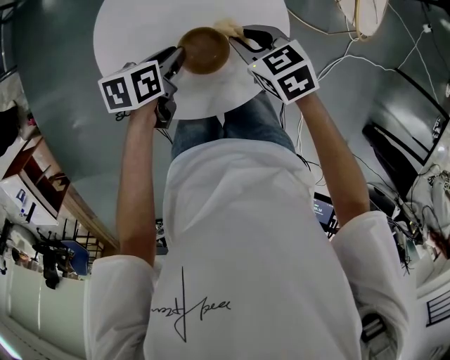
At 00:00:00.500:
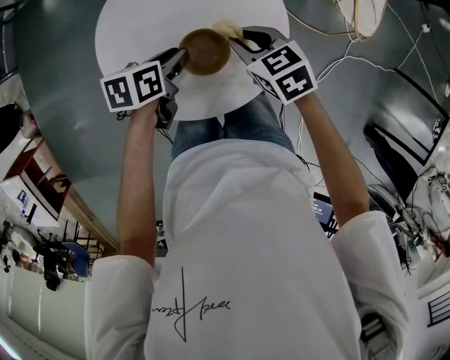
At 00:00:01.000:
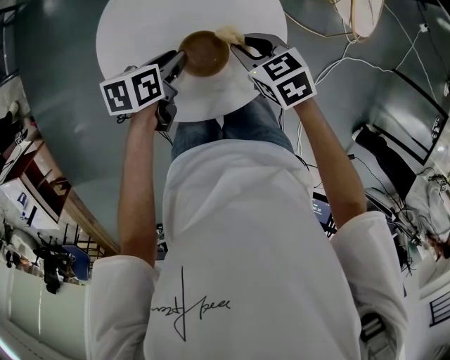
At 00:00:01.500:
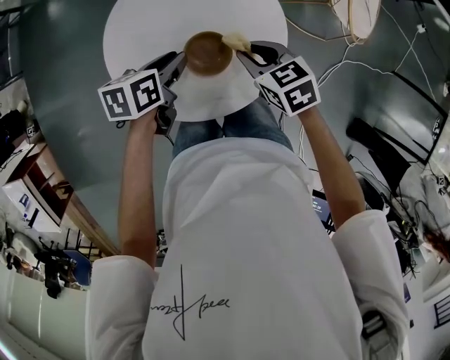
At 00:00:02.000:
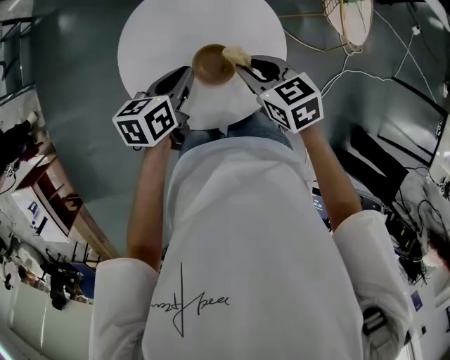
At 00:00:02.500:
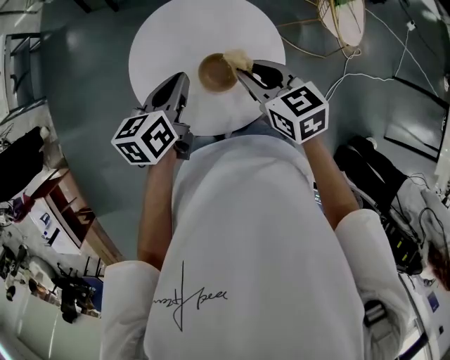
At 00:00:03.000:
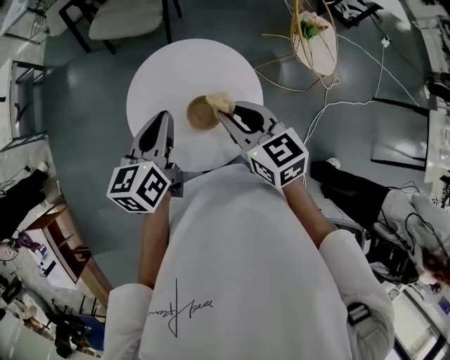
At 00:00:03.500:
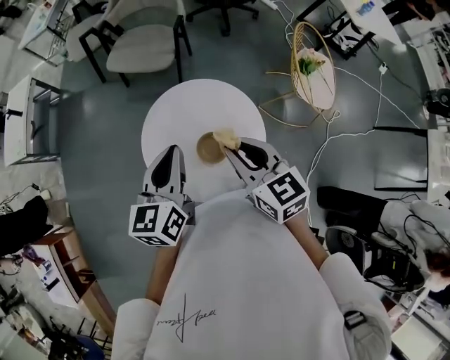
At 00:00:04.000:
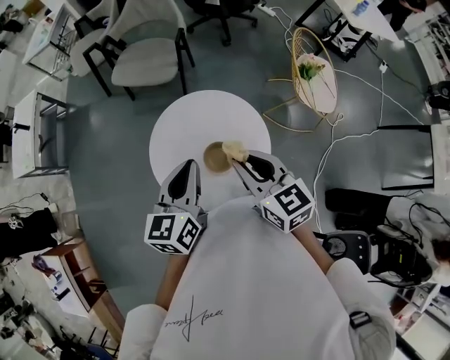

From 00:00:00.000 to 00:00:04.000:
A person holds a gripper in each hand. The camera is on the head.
From 00:00:00.000 to 00:00:02.000: Both grippers travel together upward, about 10 cm.
From 00:00:02.000 to 00:00:04.000: Both grippers move upward, approximately 20 cm. The right gripper turns by about 30 degrees. The left gripper changes its angle by some 30 degrees.

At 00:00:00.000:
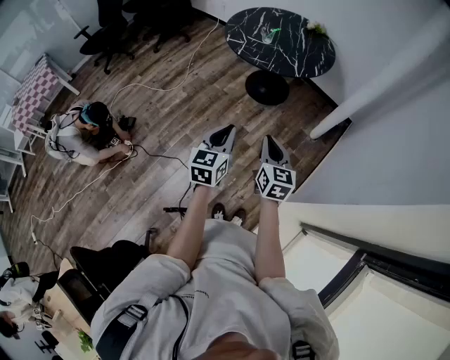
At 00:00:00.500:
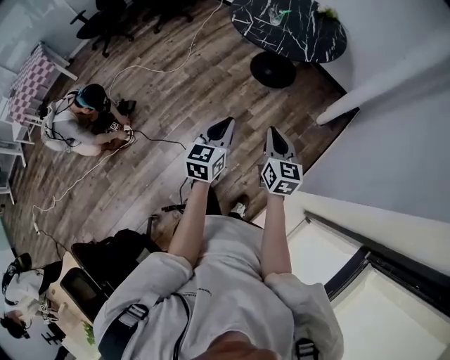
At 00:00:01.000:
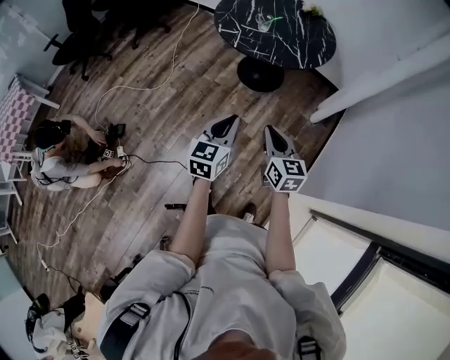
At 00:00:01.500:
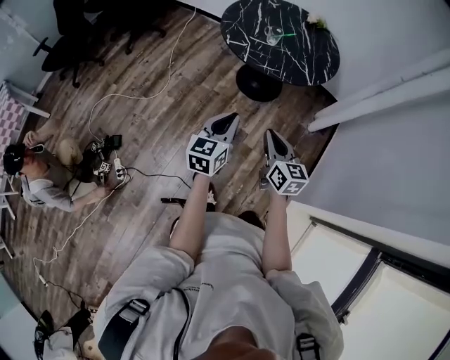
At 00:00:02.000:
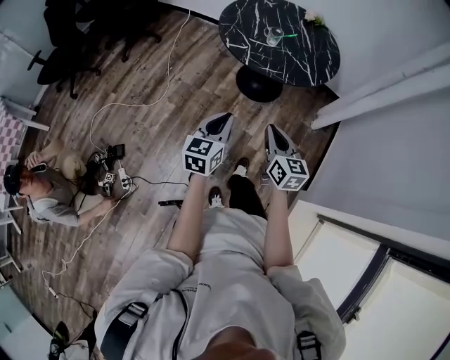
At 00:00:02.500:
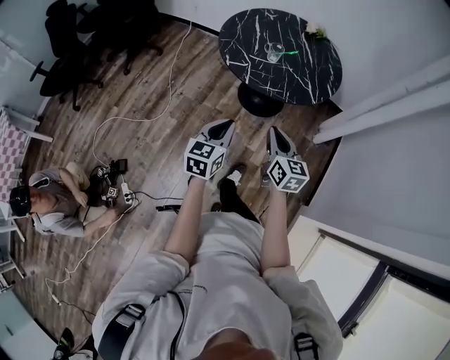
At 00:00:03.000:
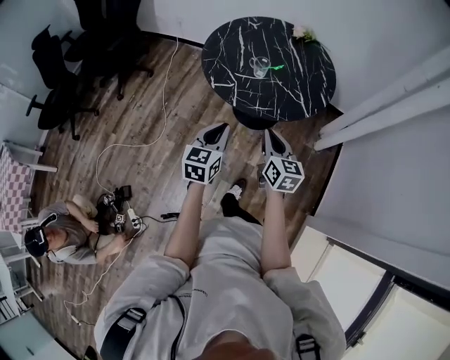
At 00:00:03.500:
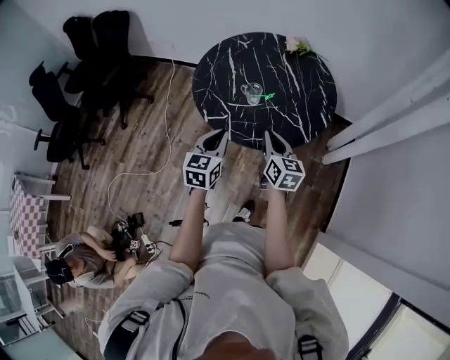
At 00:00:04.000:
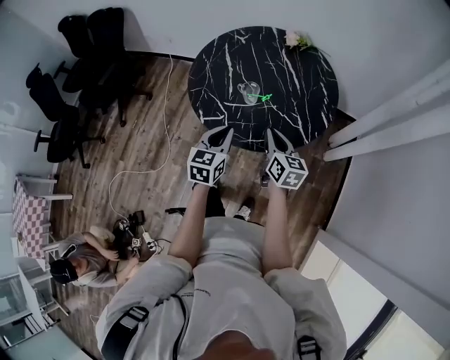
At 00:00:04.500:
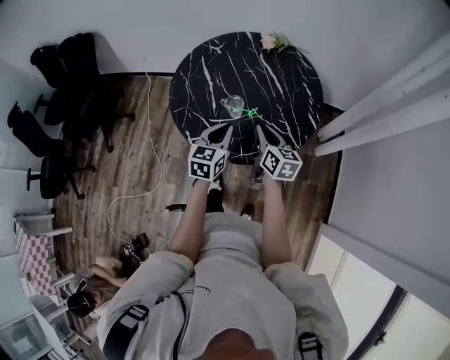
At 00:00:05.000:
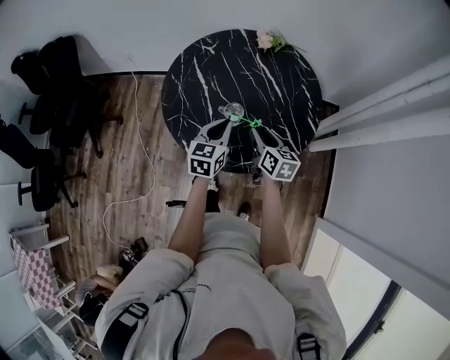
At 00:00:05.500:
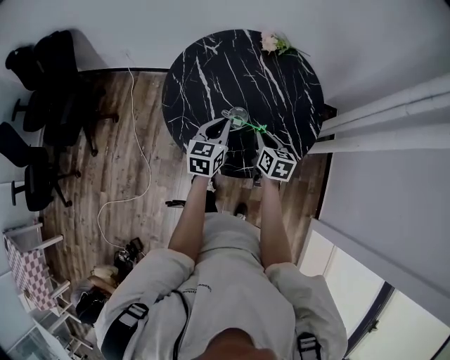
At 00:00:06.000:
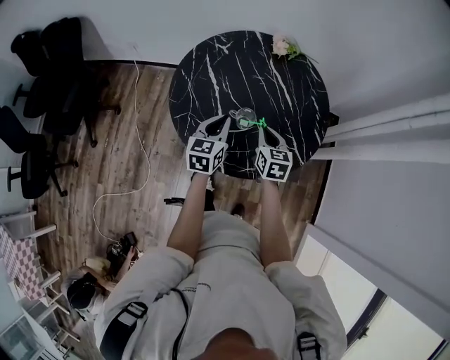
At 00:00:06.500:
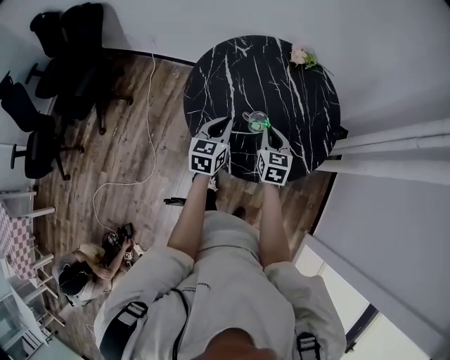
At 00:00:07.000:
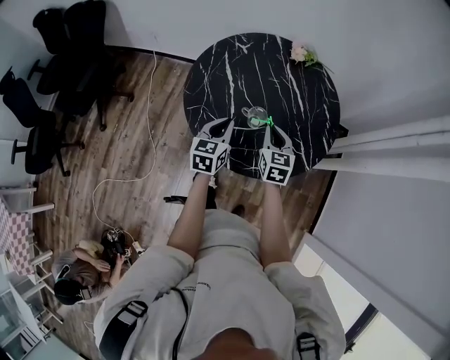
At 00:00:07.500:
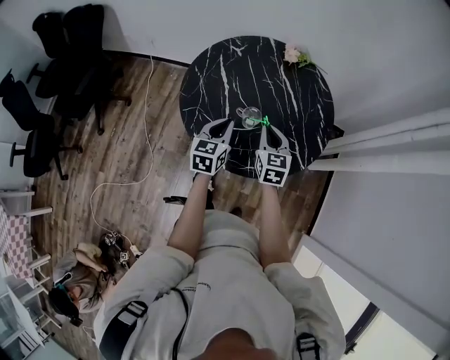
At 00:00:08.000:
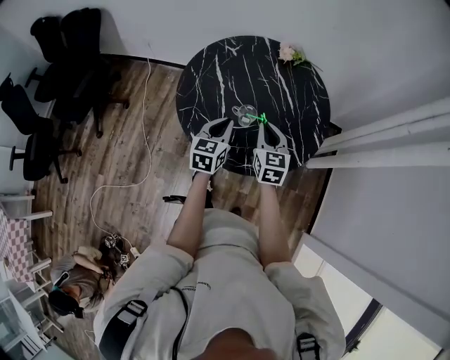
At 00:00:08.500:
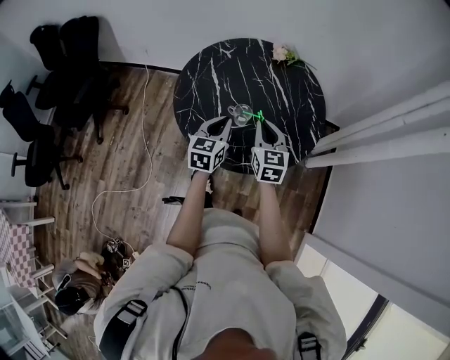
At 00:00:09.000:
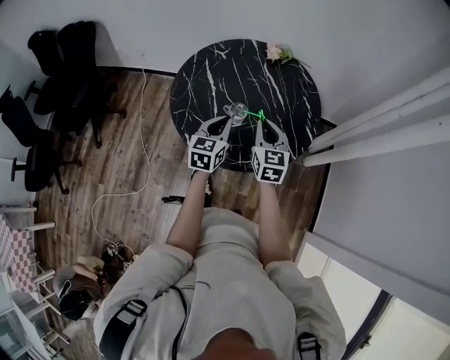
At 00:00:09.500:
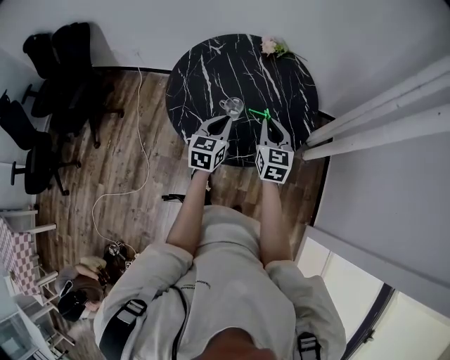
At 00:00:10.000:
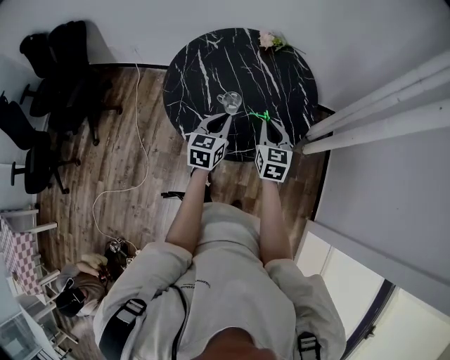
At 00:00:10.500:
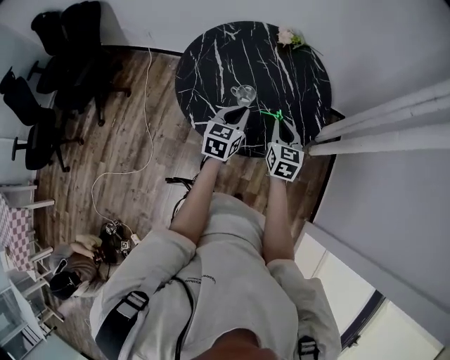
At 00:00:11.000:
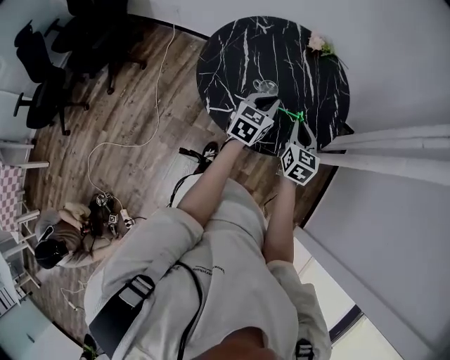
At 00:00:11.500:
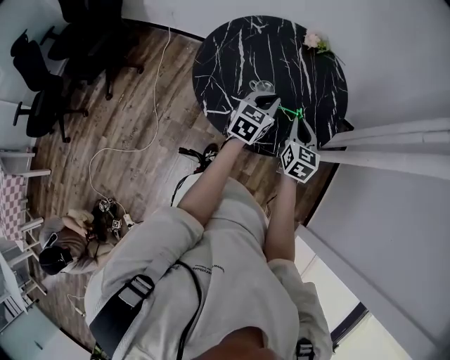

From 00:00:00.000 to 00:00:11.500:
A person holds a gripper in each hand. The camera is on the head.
From 00:00:00.000 to 00:00:02.000: The right gripper heads to the left and forward, covering approximately 35 cm. The left gripper moves forward and to the left, about 35 cm.
From 00:00:02.000 to 00:00:04.000: Both grippers are carried forward, roughly 40 cm.
From 00:00:04.000 to 00:00:06.000: Both grippers travel together forward and to the left, some 20 cm. The right gripper turns by roughly 20 degrees, and opens, then closes again.
From 00:00:06.000 to 00:00:07.500: The grippers move only a little.
From 00:00:07.500 to 00:00:09.500: The grippers both shift to the right by about 10 cm.
From 00:00:09.500 to 00:00:11.500: The left gripper shifts by about 5 cm.

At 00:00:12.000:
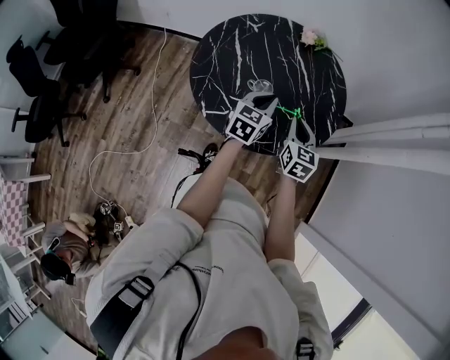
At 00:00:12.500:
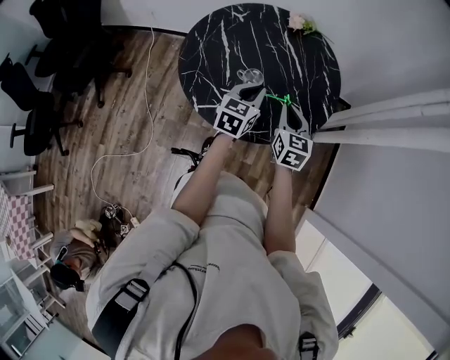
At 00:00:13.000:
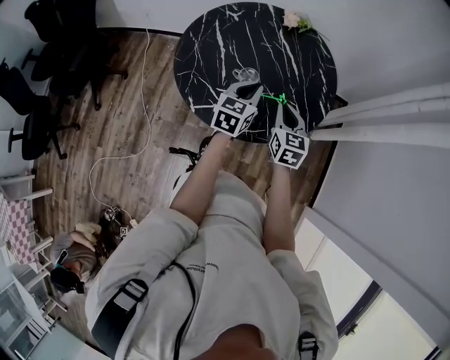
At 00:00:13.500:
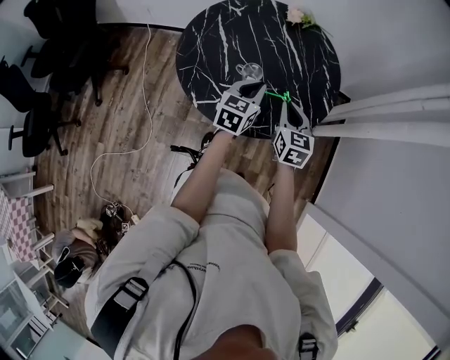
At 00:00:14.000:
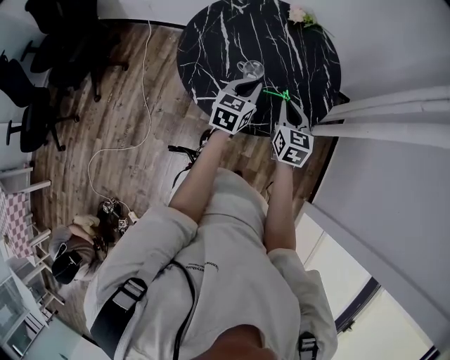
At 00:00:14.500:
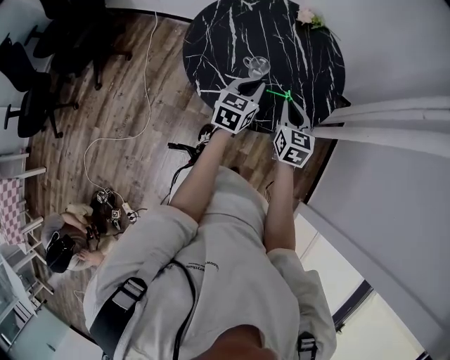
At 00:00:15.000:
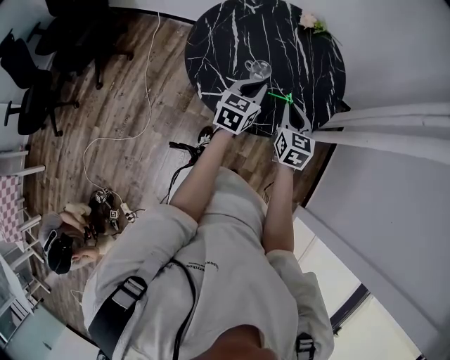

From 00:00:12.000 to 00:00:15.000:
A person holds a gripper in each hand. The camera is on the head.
From 00:00:12.000 to 00:00:15.000: There are only small adjustments of the grippers.

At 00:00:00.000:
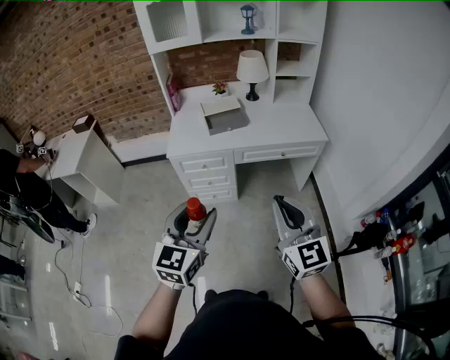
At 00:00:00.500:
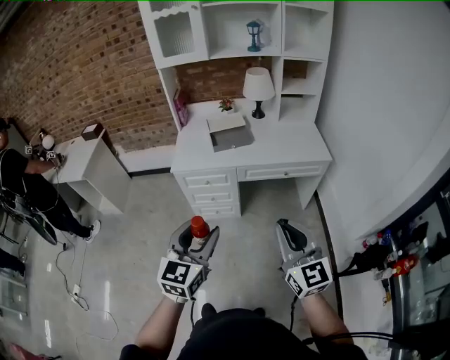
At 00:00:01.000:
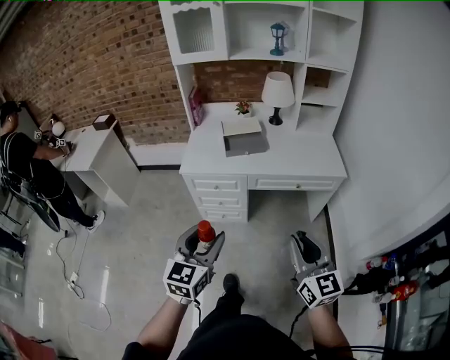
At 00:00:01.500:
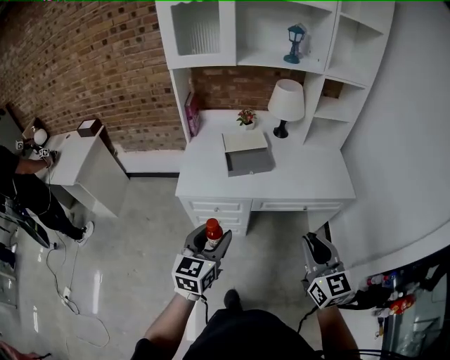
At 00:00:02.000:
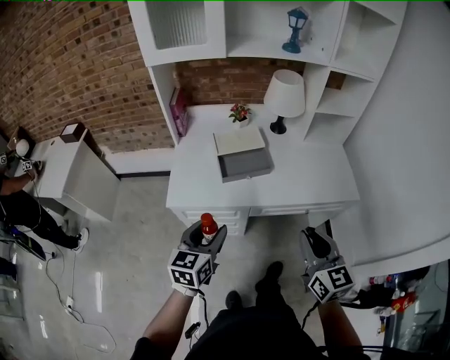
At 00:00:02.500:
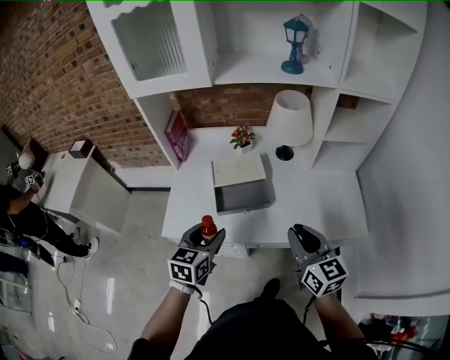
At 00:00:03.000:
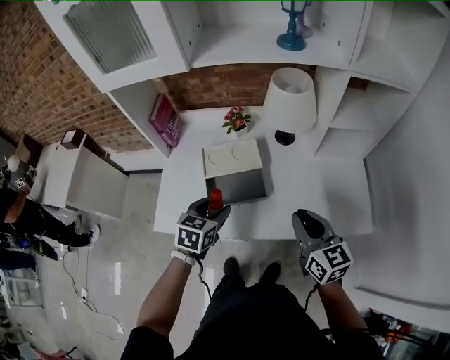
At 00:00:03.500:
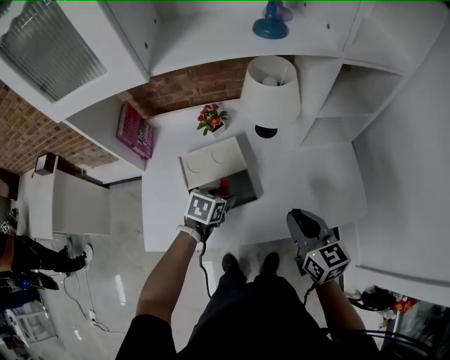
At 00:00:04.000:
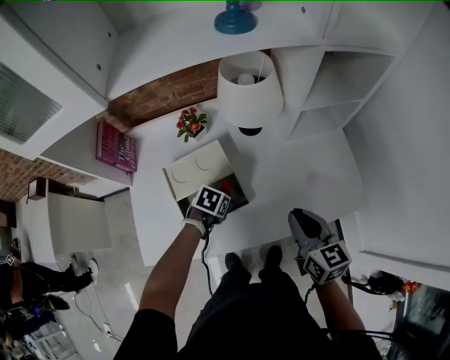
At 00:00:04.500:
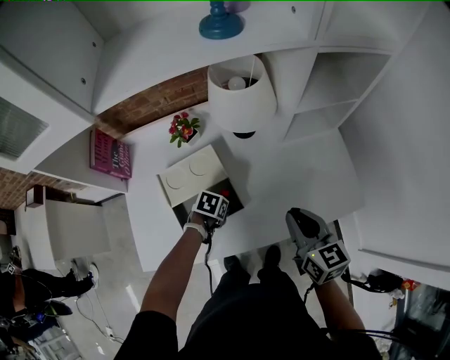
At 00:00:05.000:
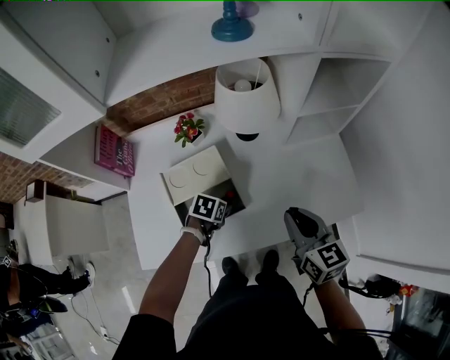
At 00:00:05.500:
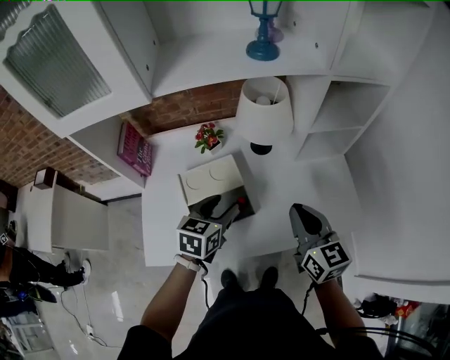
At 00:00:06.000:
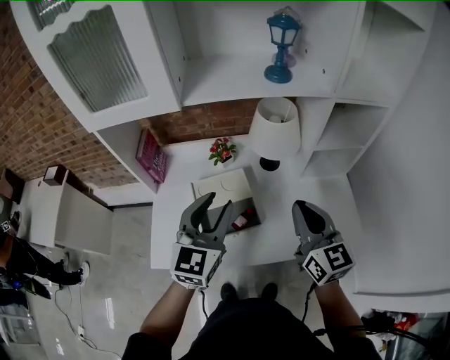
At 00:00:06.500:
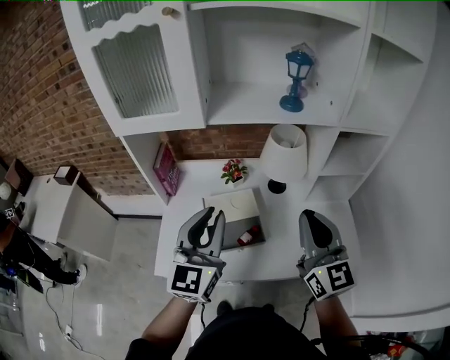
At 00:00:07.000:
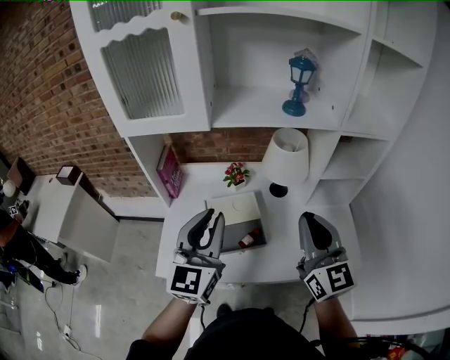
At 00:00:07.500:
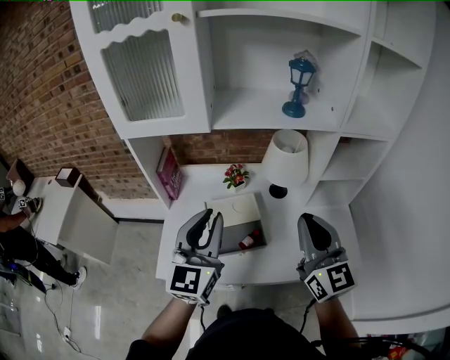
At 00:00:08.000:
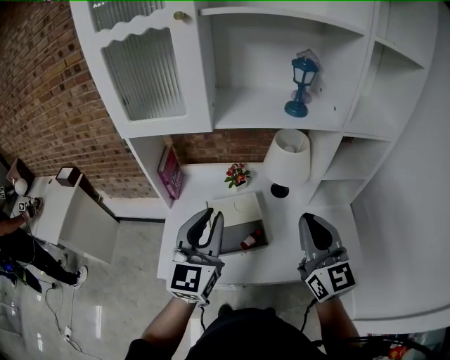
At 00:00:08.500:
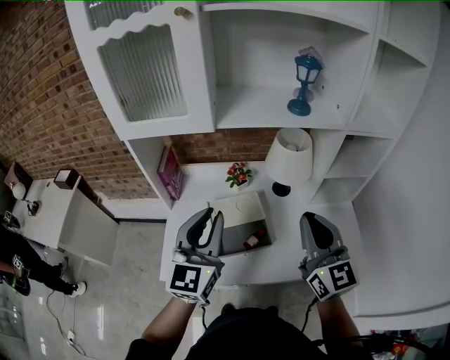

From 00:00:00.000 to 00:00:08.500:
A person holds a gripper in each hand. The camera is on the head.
From 00:00:00.000 to 00:00:02.000: Both grippers move forward, roughly 35 cm. The left gripper rotates some 20 degrees.
From 00:00:02.000 to 00:00:04.000: The right gripper shifts by approximately 35 cm. Meanwhile the left gripper ends up roughly 50 cm from where it was, and angles its fingers downward, by roughly 50 degrees.
From 00:00:04.000 to 00:00:06.500: The right gripper heads upward, covering some 25 cm, and changes its angle by some 40 degrees. The left gripper travels upward by roughly 40 cm, points its fingers roughly 70 degrees further upward, and closes up.
From 00:00:06.500 to 00:00:08.500: The grippers move only a little.
